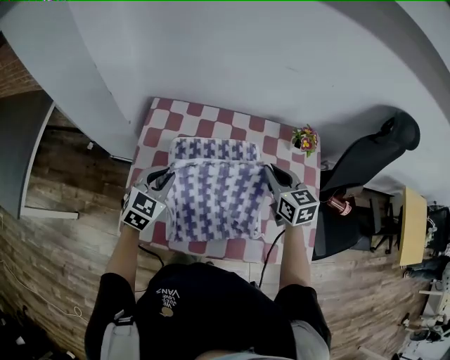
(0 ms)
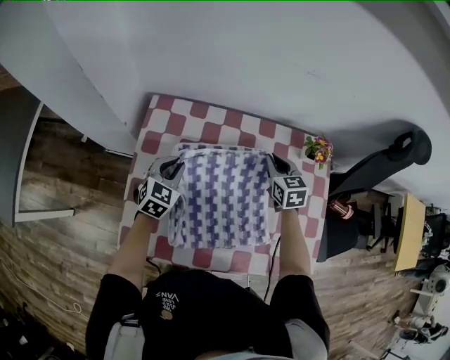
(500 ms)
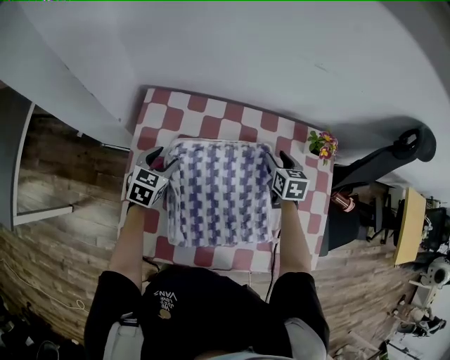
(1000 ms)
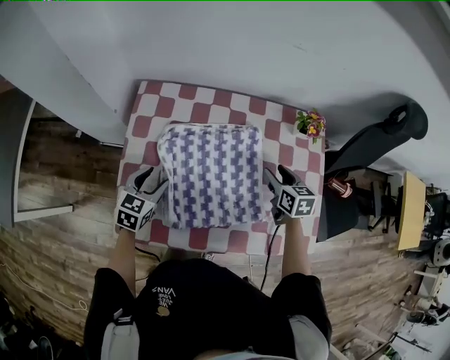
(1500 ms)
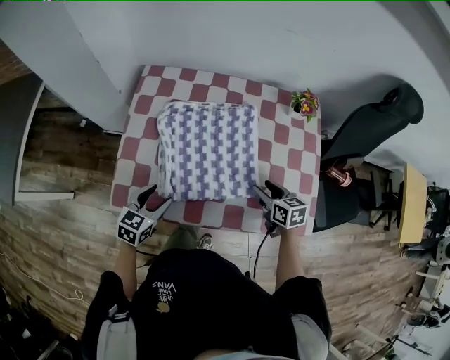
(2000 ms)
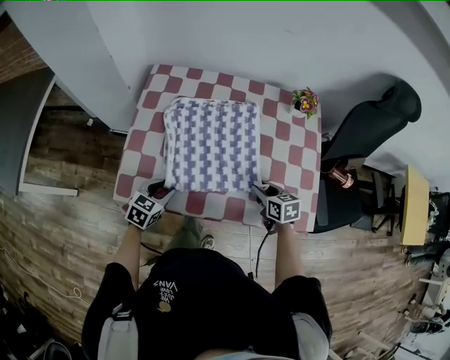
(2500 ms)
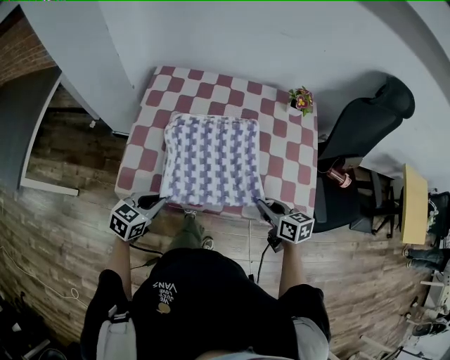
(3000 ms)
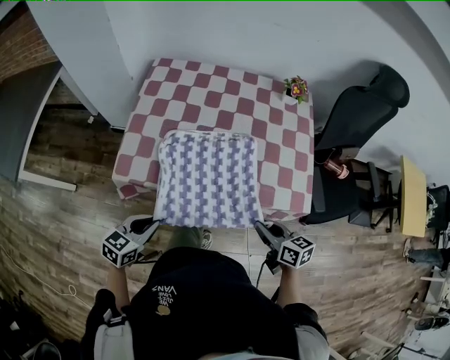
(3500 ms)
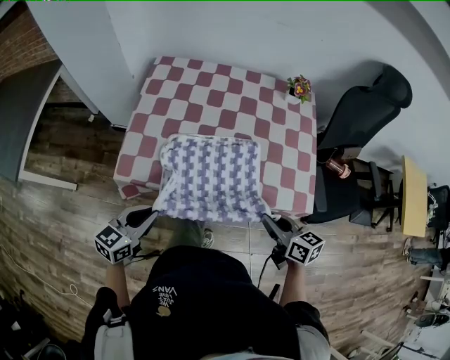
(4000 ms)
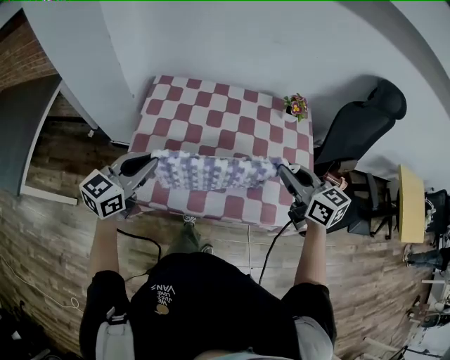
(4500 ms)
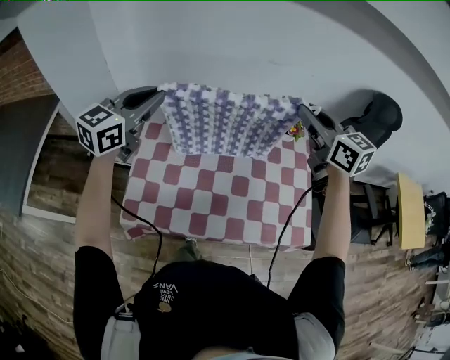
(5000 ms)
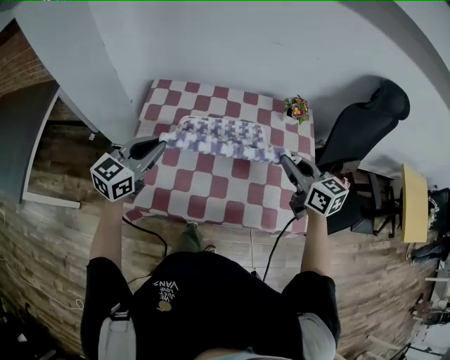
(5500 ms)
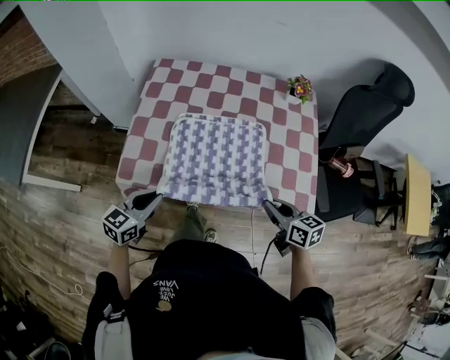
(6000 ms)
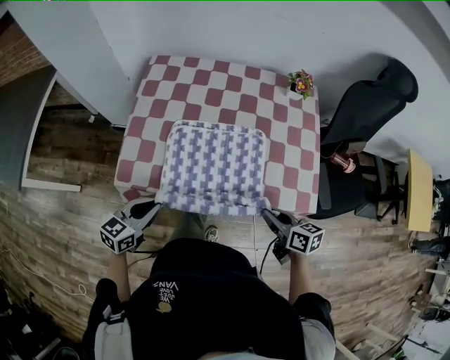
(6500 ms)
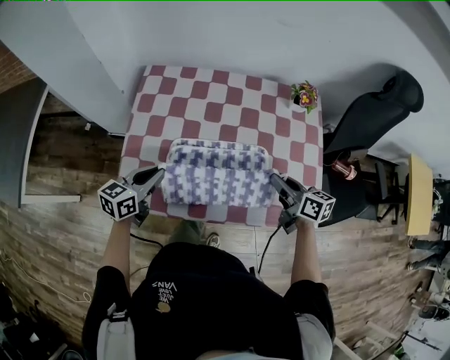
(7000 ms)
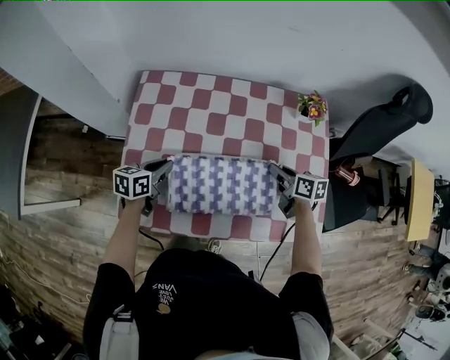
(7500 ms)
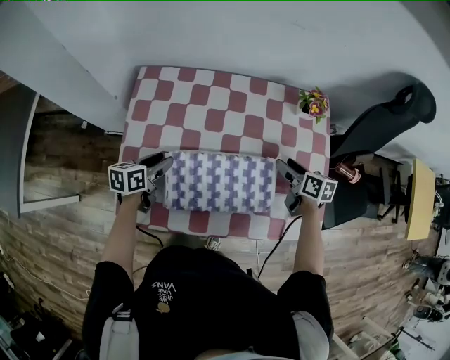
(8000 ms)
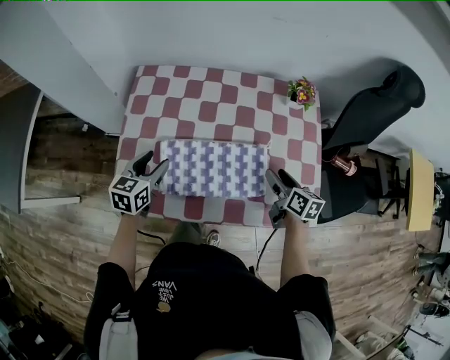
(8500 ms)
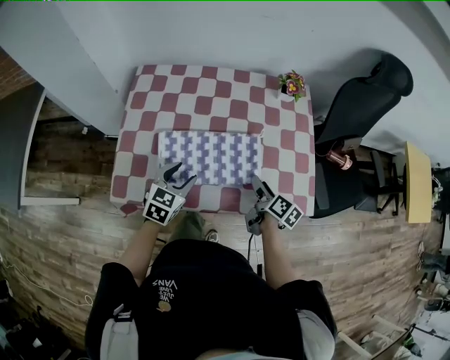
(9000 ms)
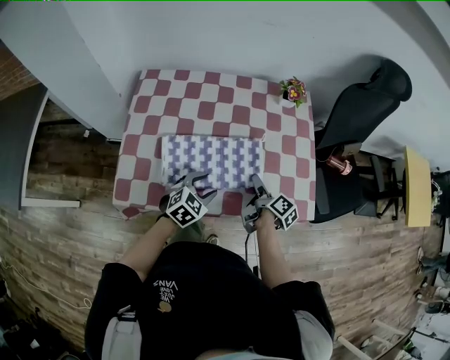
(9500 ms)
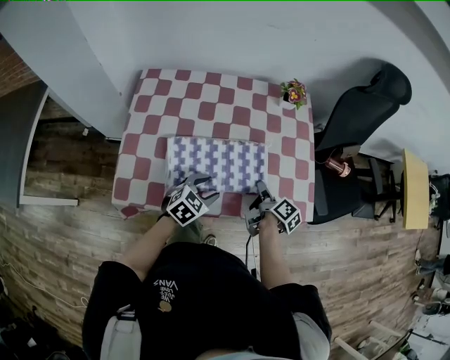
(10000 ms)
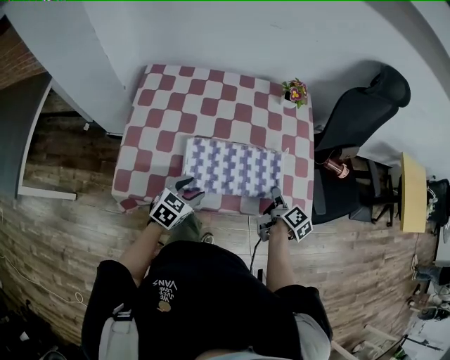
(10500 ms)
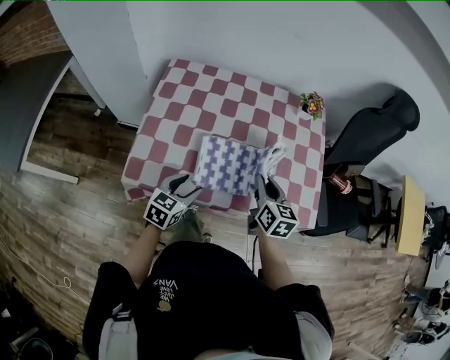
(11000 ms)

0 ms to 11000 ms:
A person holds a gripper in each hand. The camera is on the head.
0 ms to 2000 ms: The left gripper shifts approximately 20 cm backward and downward, swivels roughly 30 degrees, and opens up. Meanwhile the right gripper heads downward and backward, covering roughly 20 cm, turns by roughly 20 degrees, and opens up.
2000 ms to 3500 ms: Both grippers travel together backward, about 20 cm. The left gripper closes. The right gripper closes up.
3500 ms to 5500 ms: The two grippers go some 30 cm forward and upward. The right gripper changes its angle by about 20 degrees. Meanwhile the left gripper swivels about 30 degrees.
5500 ms to 7500 ms: The two grippers go roughly 20 cm downward. The left gripper reaches roughly 20 cm backward, then returns, and changes its angle by about 40 degrees. The right gripper goes backward and returns, about 20 cm each way, and changes its angle by about 30 degrees.
7500 ms to 9000 ms: The right gripper shifts approximately 15 cm backward, rotates approximately 40 degrees, and opens. Meanwhile the left gripper travels to the right and backward by about 15 cm, changes its angle by roughly 30 degrees, and opens up.
9000 ms to 11000 ms: The left gripper shifts roughly 5 cm backward, and travels to the right and back again, roughly 10 cm each way. The right gripper shifts some 15 cm upward and to the left, rolls counterclockwise, seen from behind, by about 40 degrees, and closes its fingers.

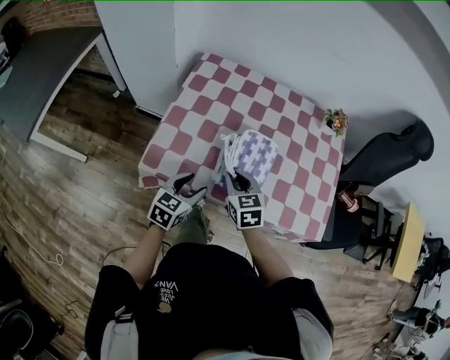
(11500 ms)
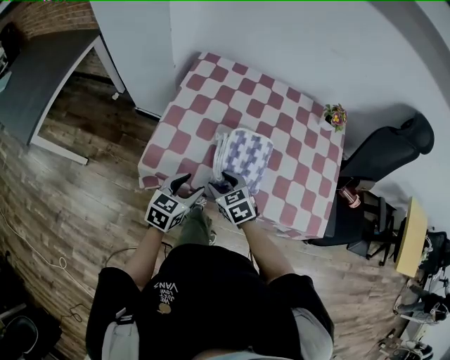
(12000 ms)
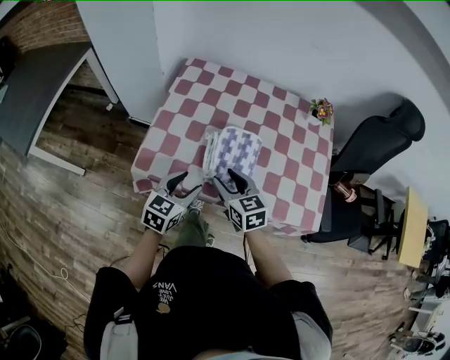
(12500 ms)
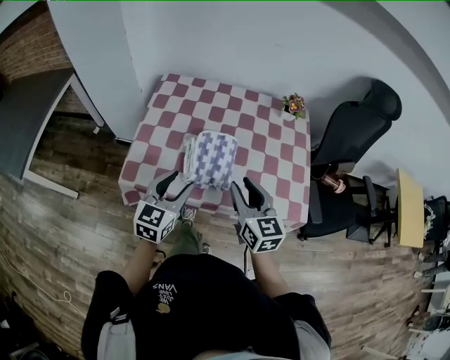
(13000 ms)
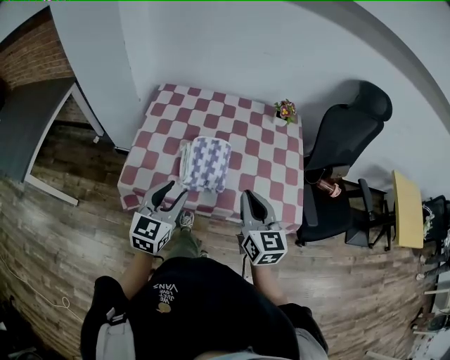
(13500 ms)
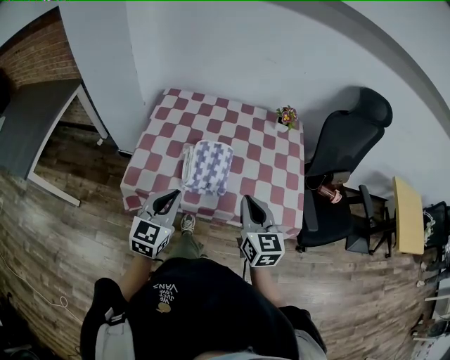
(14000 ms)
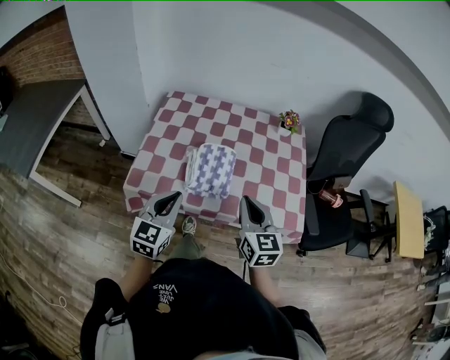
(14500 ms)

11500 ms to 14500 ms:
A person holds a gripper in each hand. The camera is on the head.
11500 ms to 13000 ms: The left gripper shifts approximately 15 cm upward. Meanwhile the right gripper travels upward, to the right and backward by roughly 20 cm, swivels roughly 30 degrees, and opens its fingers.
13000 ms to 14500 ms: The left gripper goes some 5 cm backward, and closes up, while the right gripper closes.

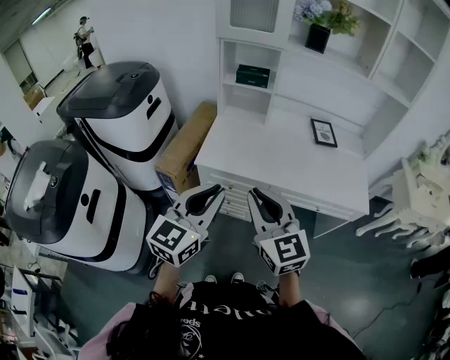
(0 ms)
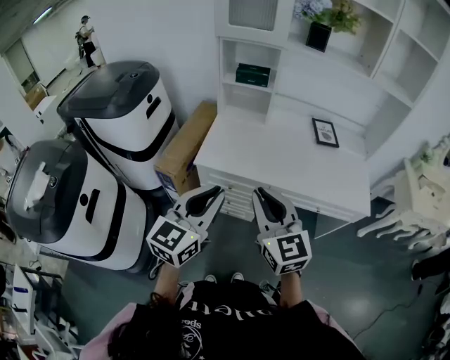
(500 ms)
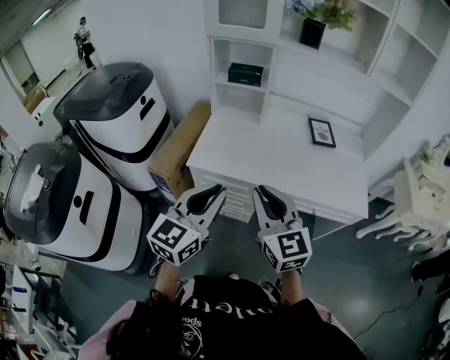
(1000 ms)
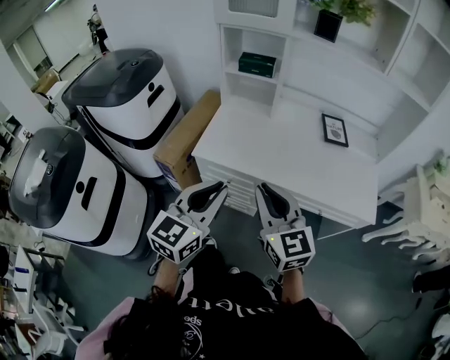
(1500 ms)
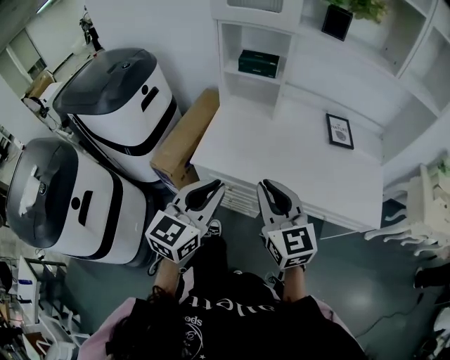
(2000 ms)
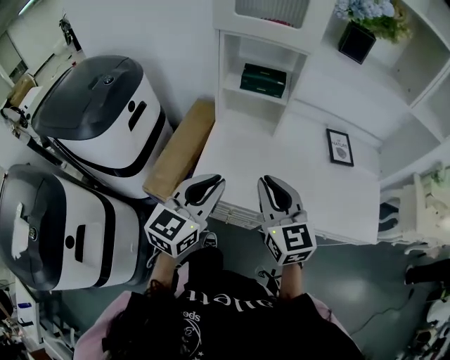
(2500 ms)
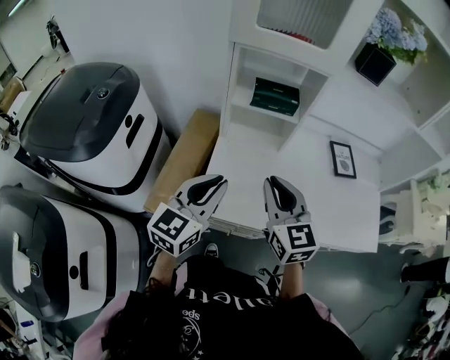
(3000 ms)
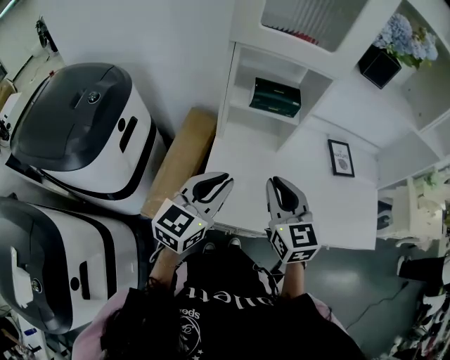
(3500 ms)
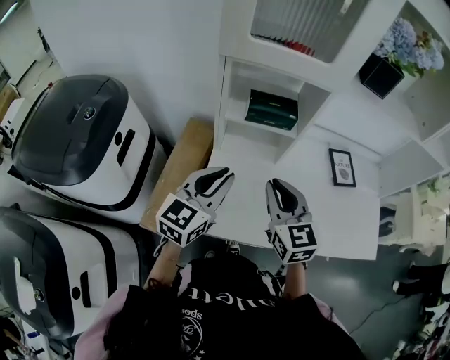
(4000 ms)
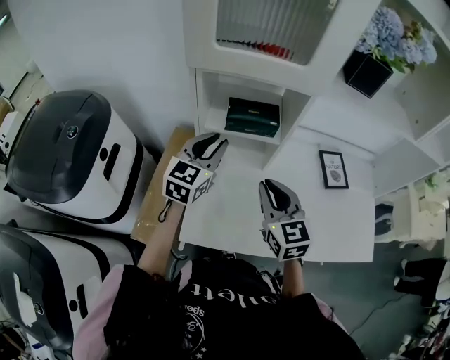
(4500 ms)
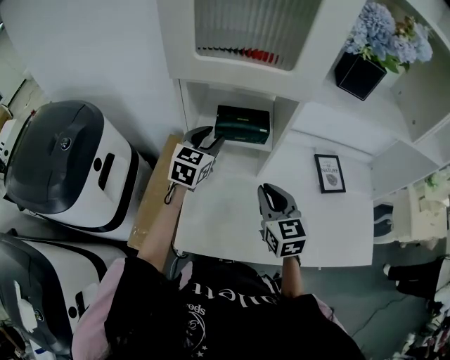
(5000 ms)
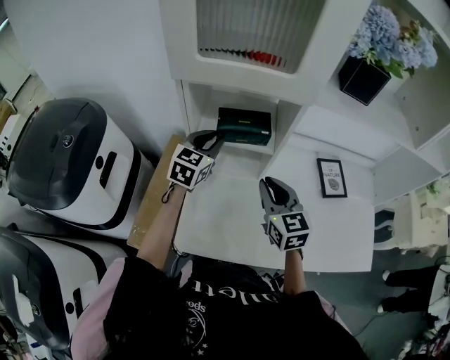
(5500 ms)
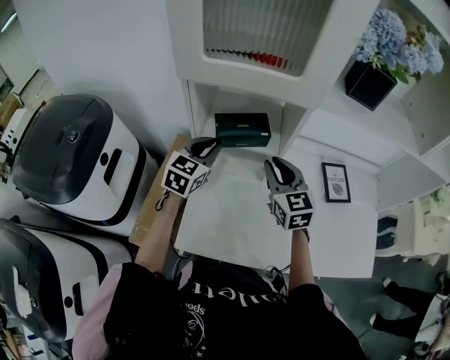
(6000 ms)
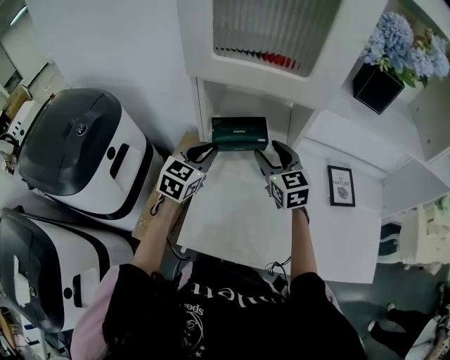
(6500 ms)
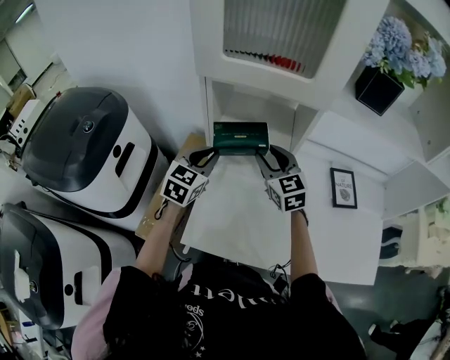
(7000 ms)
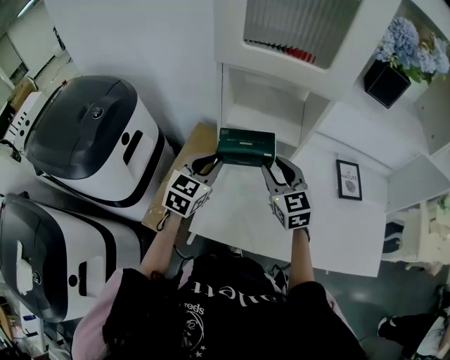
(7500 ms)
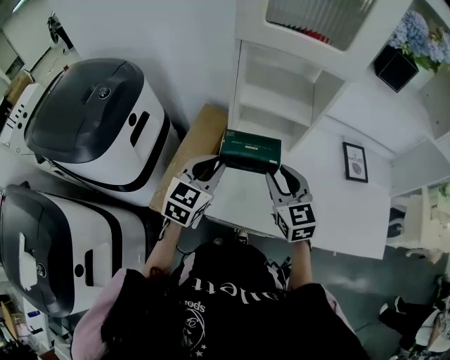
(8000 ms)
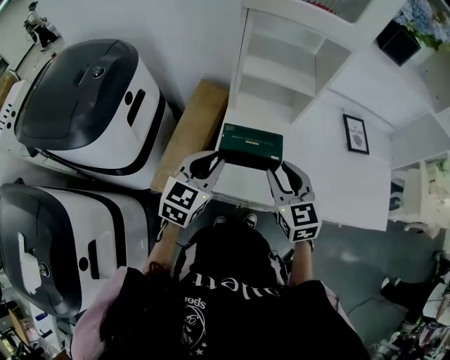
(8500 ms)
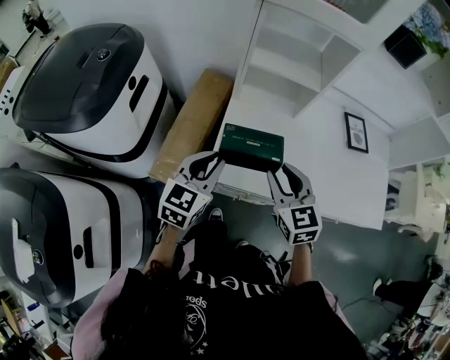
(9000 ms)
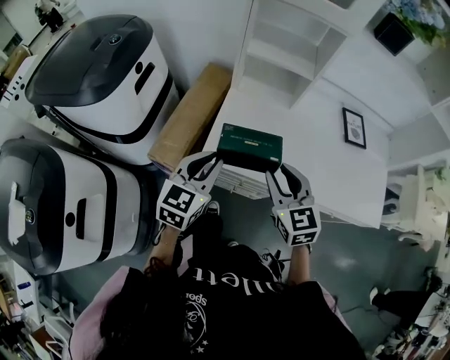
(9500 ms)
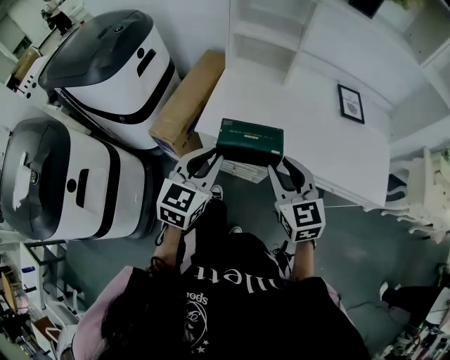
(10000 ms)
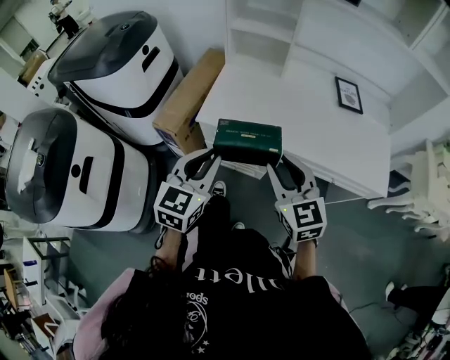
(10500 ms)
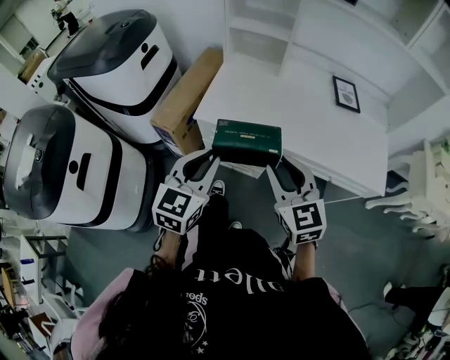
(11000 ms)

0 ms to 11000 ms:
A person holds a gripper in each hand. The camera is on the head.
0 ms to 2000 ms: The right gripper is displaced forward, to the right and downward by about 15 cm; the left gripper heads forward and downward, covering some 10 cm.
2000 ms to 3500 ms: The two grippers go about 30 cm forward and to the left.
3500 ms to 5500 ms: The right gripper moves forward and to the right, some 15 cm, while the left gripper moves forward, about 30 cm.
5500 ms to 7500 ms: The right gripper moves to the left, about 5 cm, travels forward and back again, some 10 cm each way, and opens; the left gripper shifts some 15 cm backward and to the left.
7500 ms to 9000 ms: Both grippers travel together backward, some 20 cm.
9000 ms to 11000 ms: Both grippers travel together backward and to the right, roughly 30 cm.

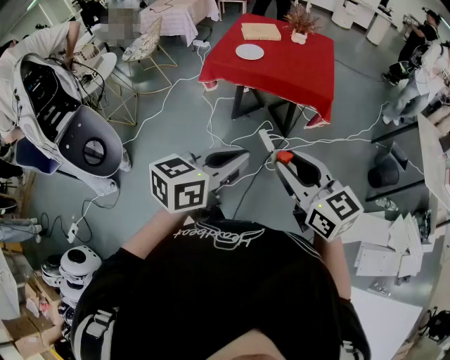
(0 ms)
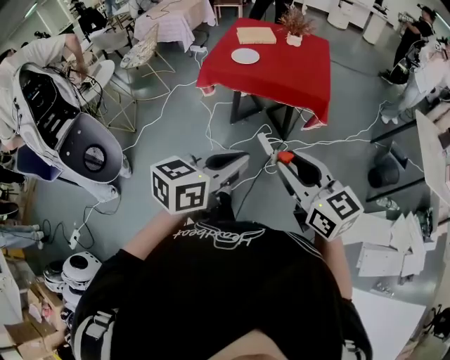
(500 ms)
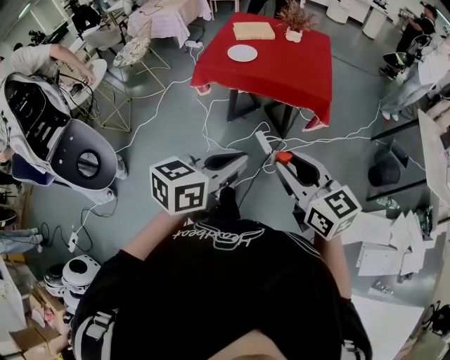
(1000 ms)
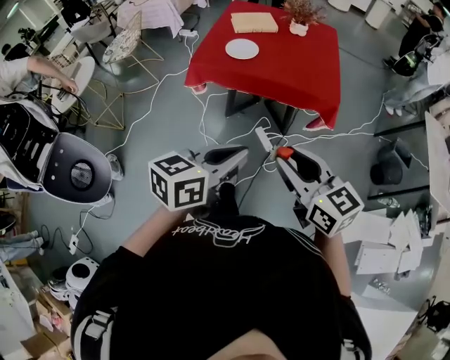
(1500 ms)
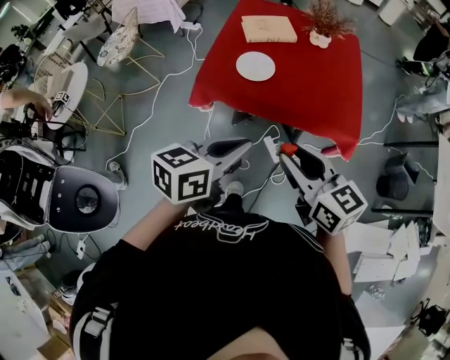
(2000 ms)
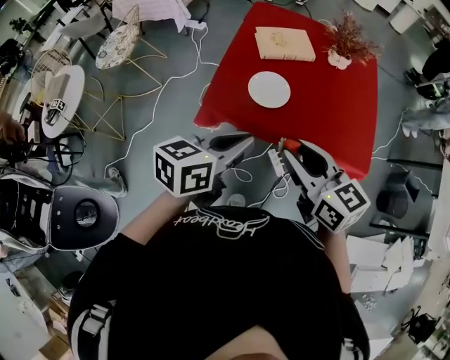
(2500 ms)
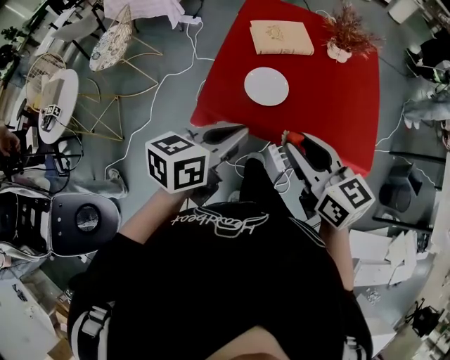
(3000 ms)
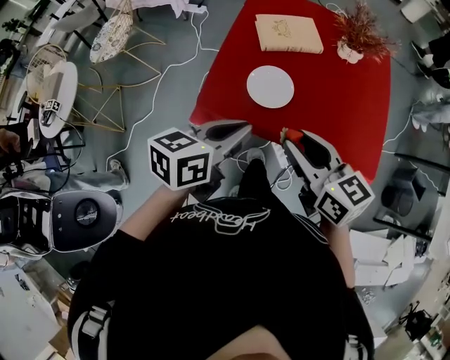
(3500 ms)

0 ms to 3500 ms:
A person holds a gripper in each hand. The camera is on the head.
0 ms to 2000 ms: The two grippers go approximately 35 cm forward.
2000 ms to 3500 ms: Both grippers move forward, about 20 cm.
